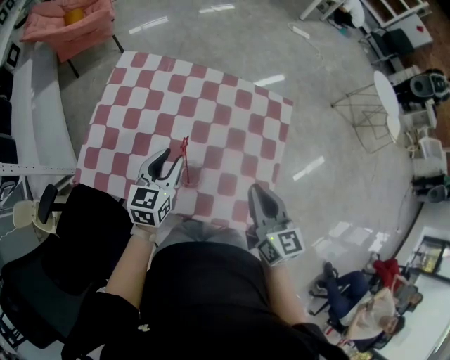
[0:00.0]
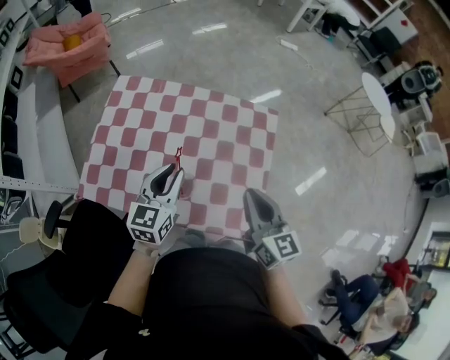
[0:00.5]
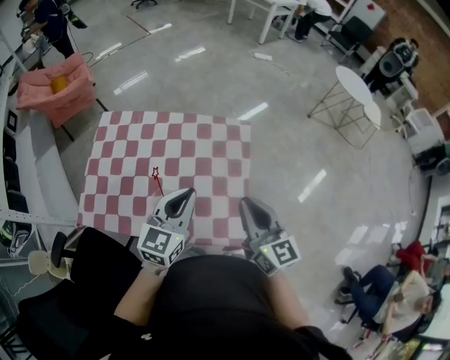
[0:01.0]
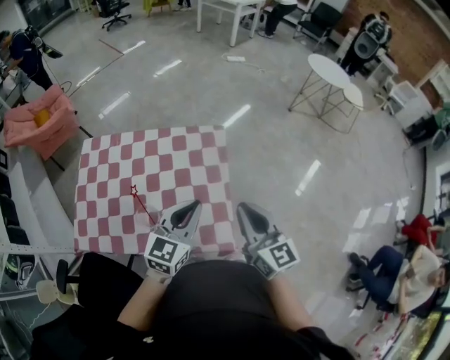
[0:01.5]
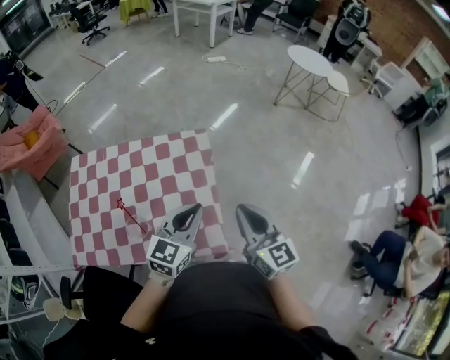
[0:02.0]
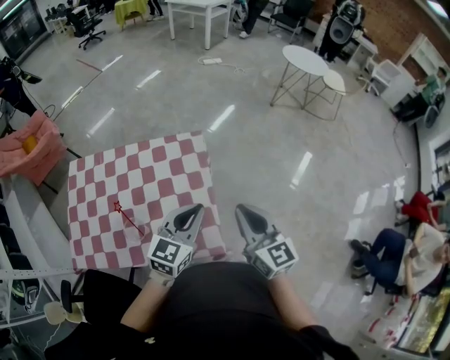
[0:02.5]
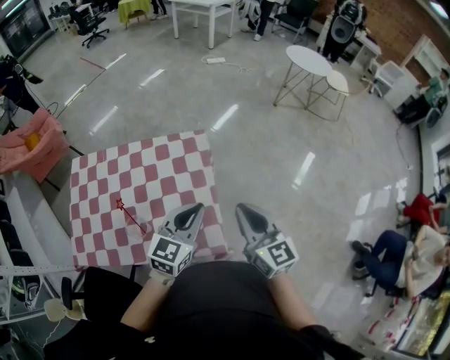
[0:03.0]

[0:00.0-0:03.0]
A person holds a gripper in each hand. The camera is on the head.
0.0 to 1.5 s: The right gripper moves to the right and upward, roughly 20 cm. The left gripper heads to the right and upward, covering some 30 cm, rotates about 30 degrees, and closes.
1.5 to 3.0 s: Both grippers travel together to the right, some 5 cm.

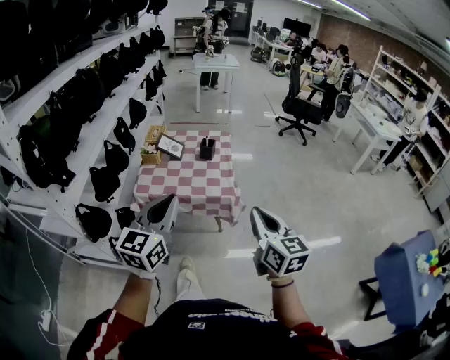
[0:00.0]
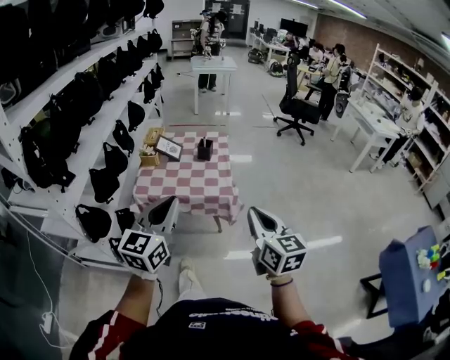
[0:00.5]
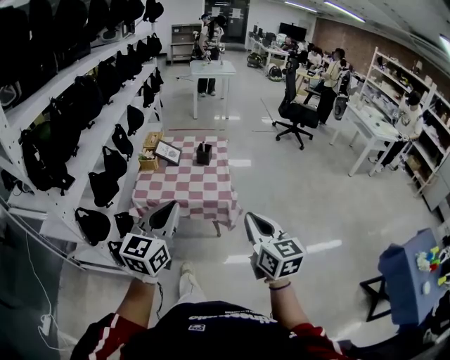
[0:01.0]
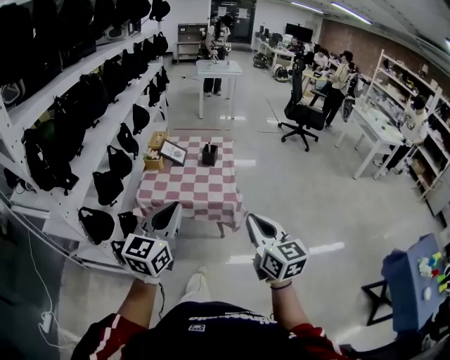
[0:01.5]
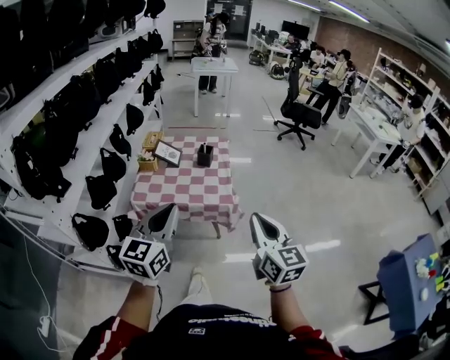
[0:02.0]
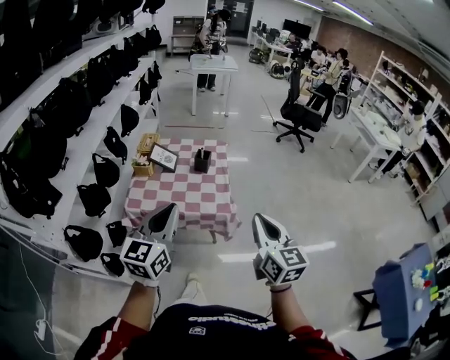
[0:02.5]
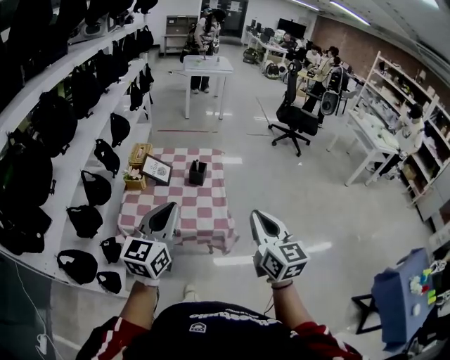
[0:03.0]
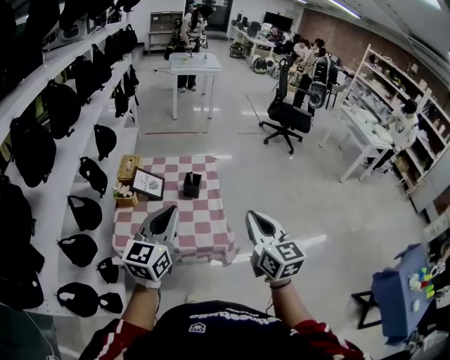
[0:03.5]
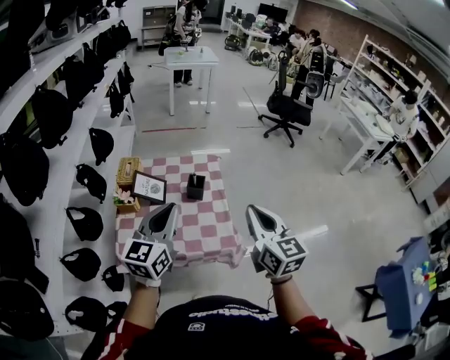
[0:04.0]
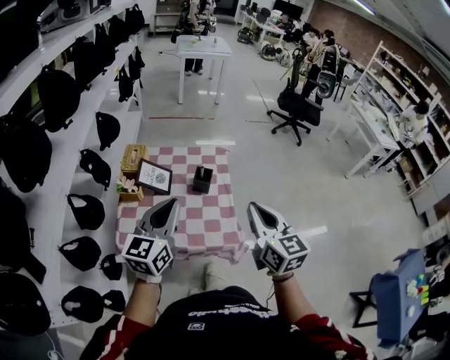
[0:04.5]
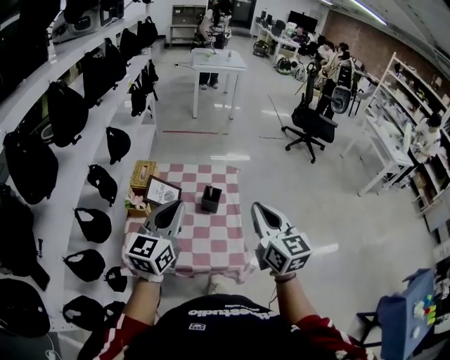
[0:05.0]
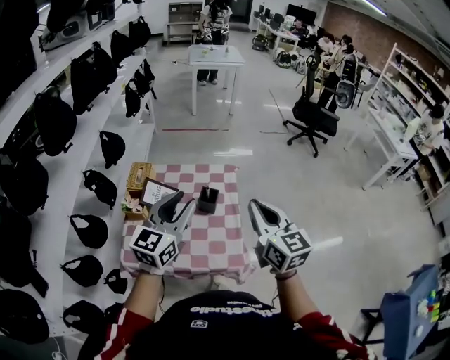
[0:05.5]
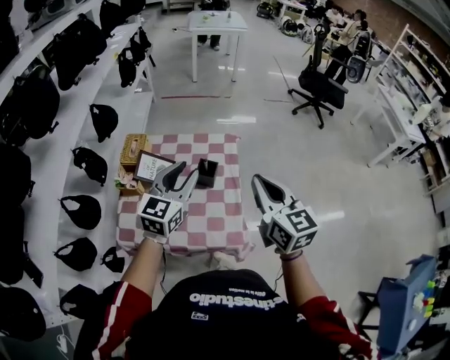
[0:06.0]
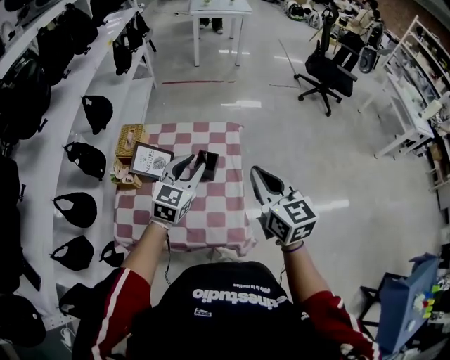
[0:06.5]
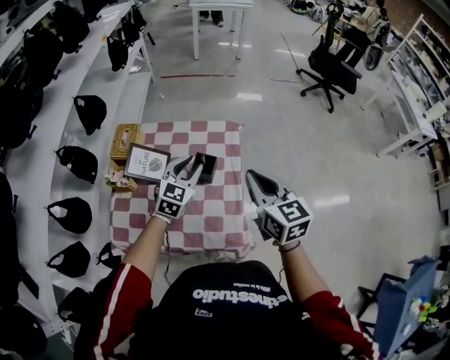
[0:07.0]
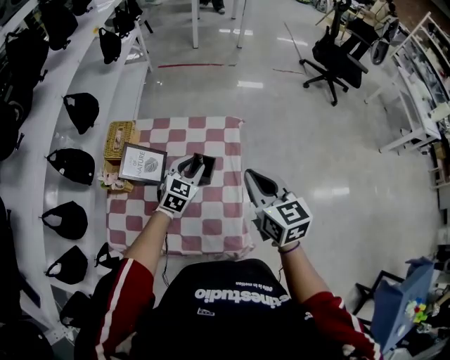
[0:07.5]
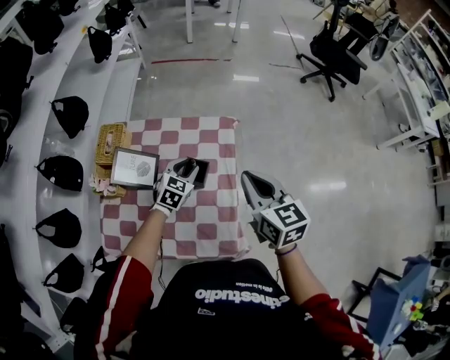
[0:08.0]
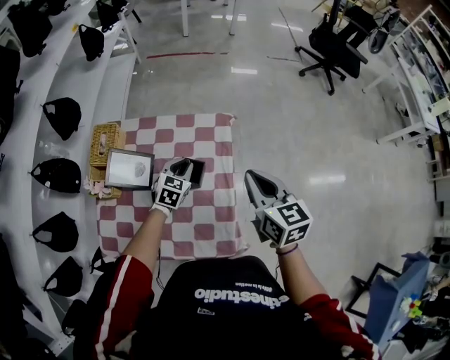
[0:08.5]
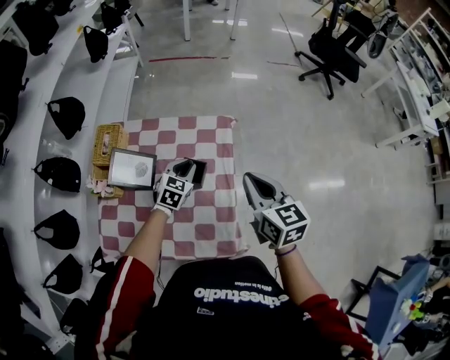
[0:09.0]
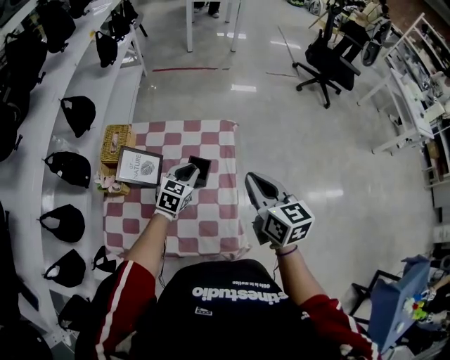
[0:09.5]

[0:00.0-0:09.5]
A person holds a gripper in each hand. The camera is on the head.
0.0 to 2.0 s: There are only small adjustments of the grippers.
2.0 to 4.0 s: The two grippers go about 30 cm forward.
4.0 to 5.5 s: Both grippers travel together forward, approximately 10 cm. The left gripper opens up.
5.5 to 7.5 s: The right gripper travels forward and downward by some 20 cm. Meanwhile the left gripper shifts approximately 35 cm downward and forward, and changes its angle by approximately 30 degrees.
7.5 to 9.5 s: The left gripper moves about 10 cm downward and comes back.

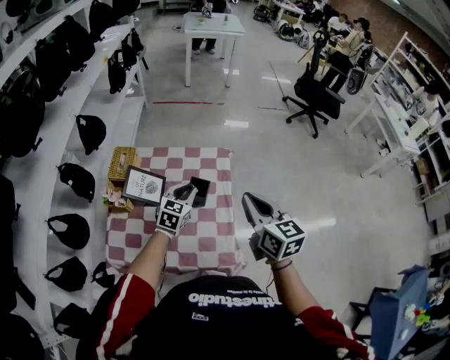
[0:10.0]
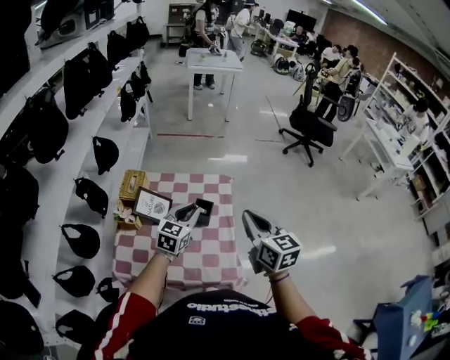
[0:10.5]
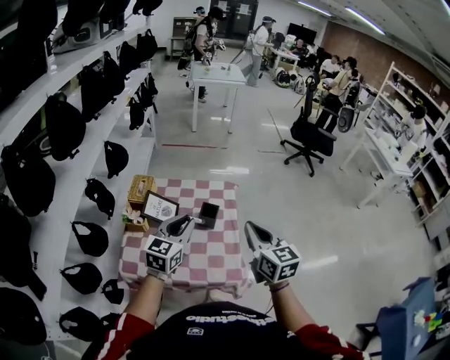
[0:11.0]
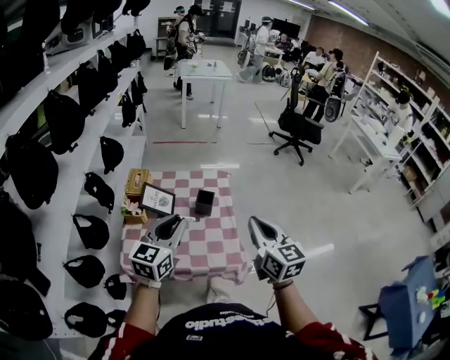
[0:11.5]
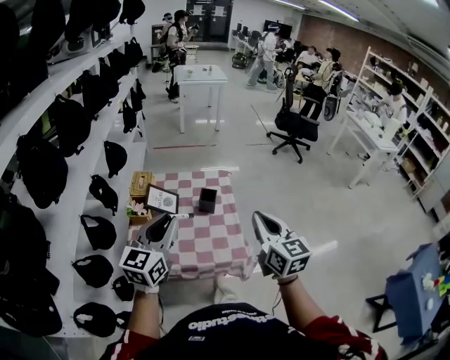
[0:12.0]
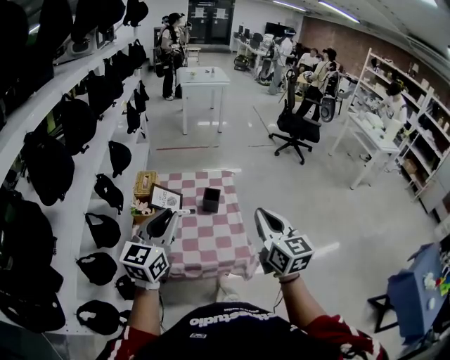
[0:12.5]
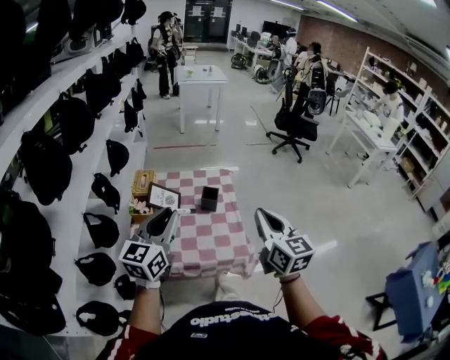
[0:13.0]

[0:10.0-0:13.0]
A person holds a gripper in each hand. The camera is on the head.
10.0 to 11.5 s: The left gripper moves backward and upward, about 30 cm, and turns by about 20 degrees. The right gripper goes about 15 cm backward.
11.5 to 13.0 s: The right gripper moves roughly 5 cm; the left gripper heads upward and to the left, covering about 5 cm.

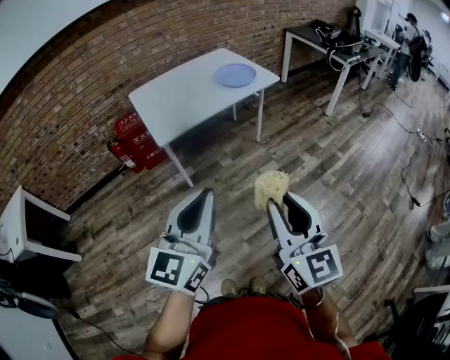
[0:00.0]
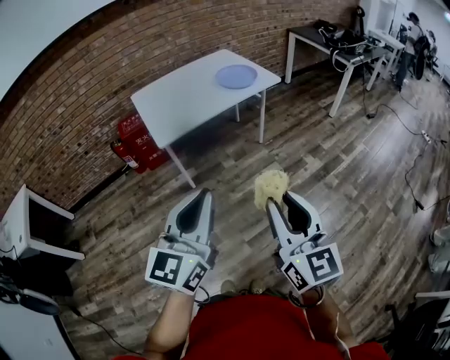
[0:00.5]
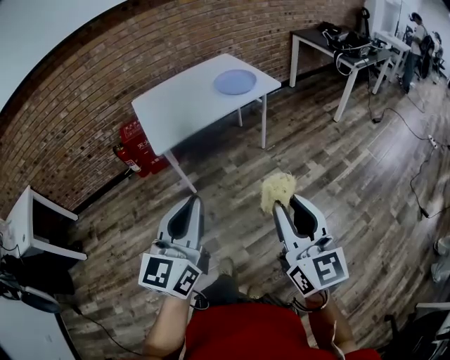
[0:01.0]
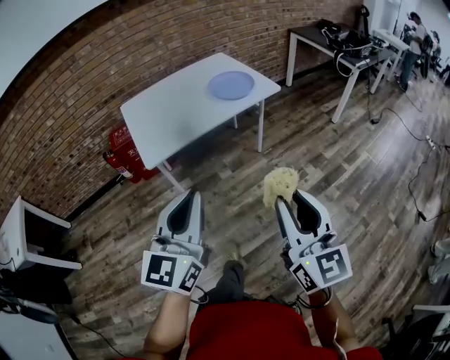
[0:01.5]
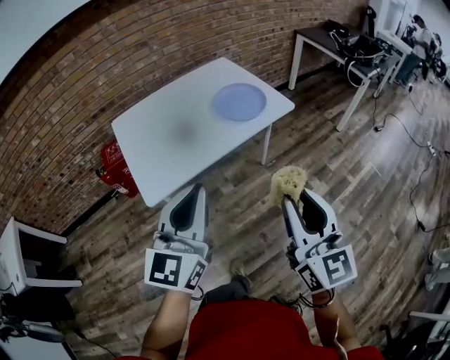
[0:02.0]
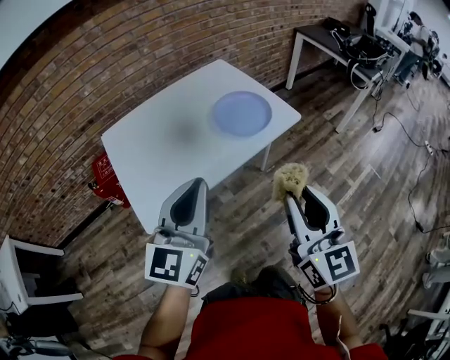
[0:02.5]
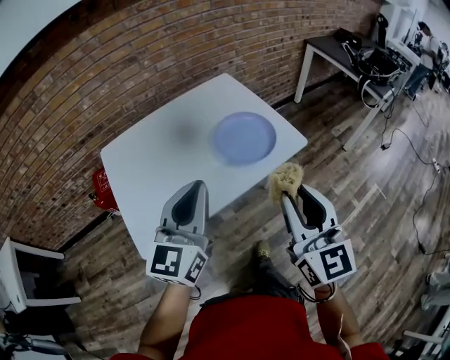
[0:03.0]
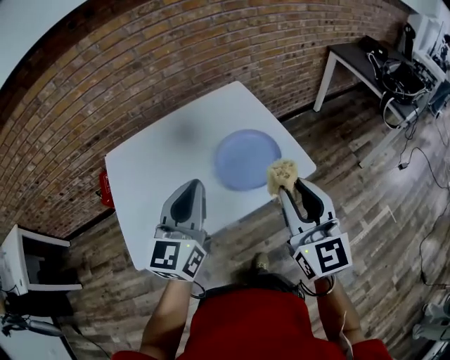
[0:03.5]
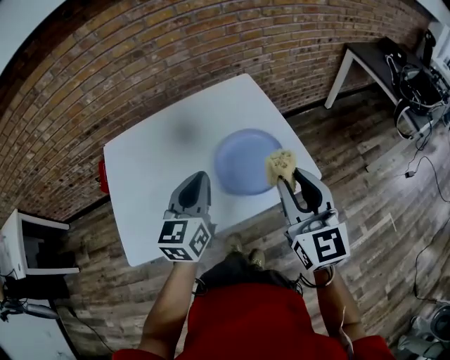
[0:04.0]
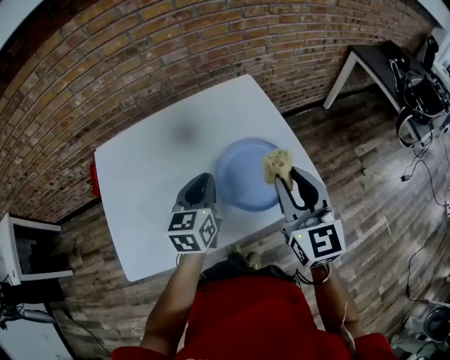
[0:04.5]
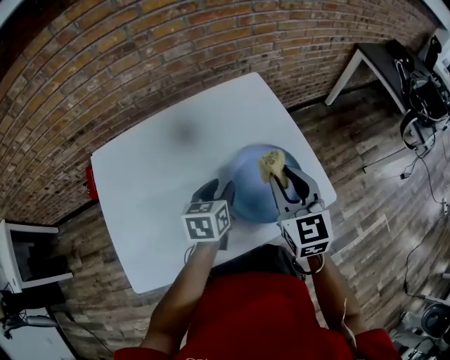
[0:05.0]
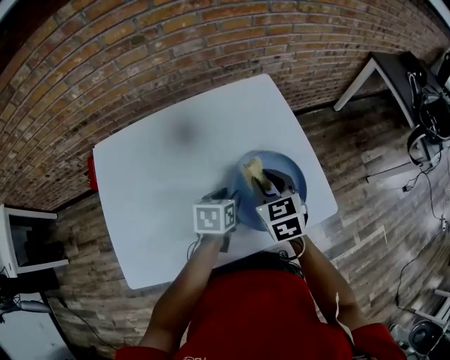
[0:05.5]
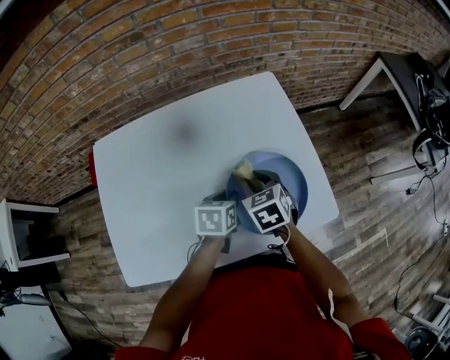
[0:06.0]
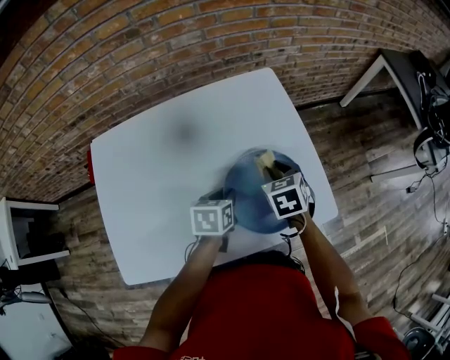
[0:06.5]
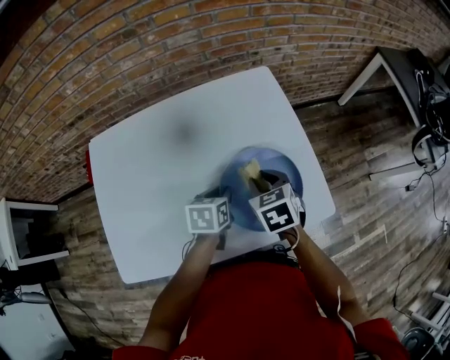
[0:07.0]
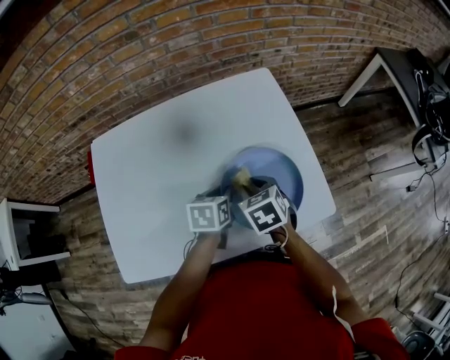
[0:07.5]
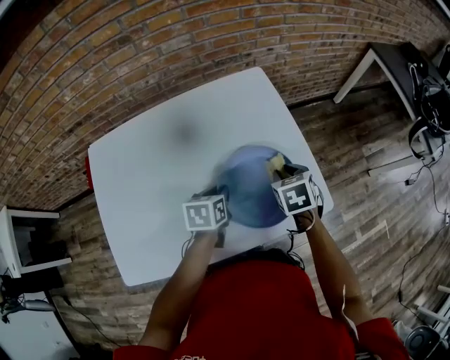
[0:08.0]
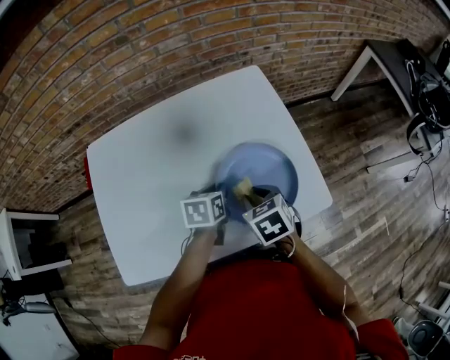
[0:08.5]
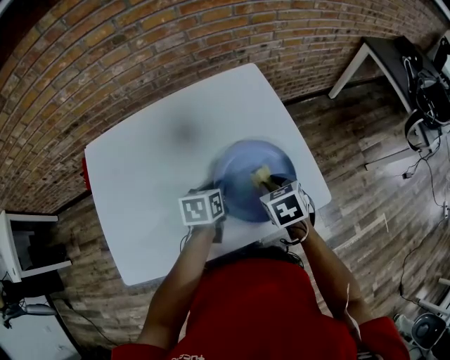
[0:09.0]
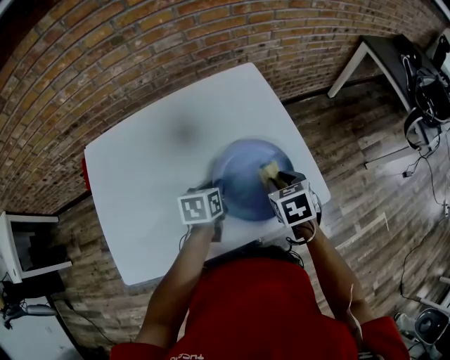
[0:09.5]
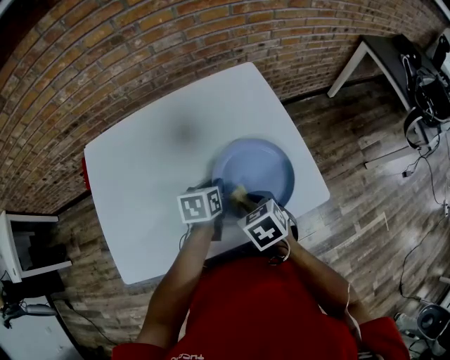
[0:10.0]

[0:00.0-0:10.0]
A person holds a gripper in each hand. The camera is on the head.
0.0 to 2.0 s: The two grippers go about 35 cm forward.
2.0 to 4.0 s: The two grippers travel together, forward, some 40 cm. The left gripper turns by approximately 20 degrees.
4.0 to 6.0 s: The right gripper shifts some 35 cm downward, forward and to the left, and angles its fingers downward, by approximately 50 degrees. The left gripper goes roughly 25 cm downward and forward, tilts its fingers about 40 degrees downward, and opens, then closes again.
6.0 to 8.0 s: The right gripper swings left and right, about 10 cm each way, with 2 reversals.
8.0 to 10.0 s: The right gripper moves backward and to the left, some 15 cm.

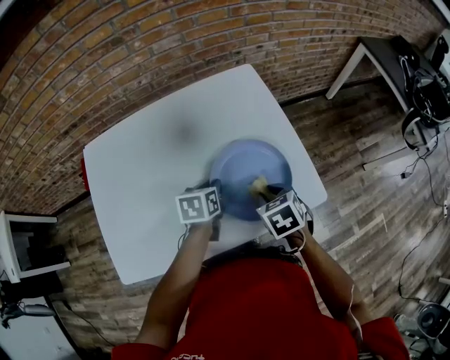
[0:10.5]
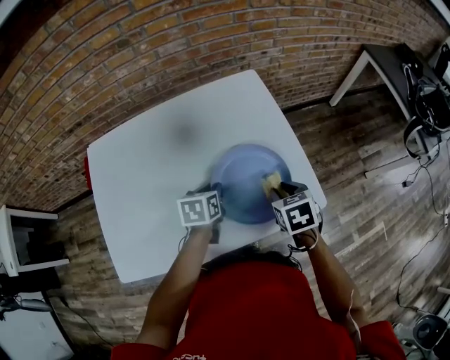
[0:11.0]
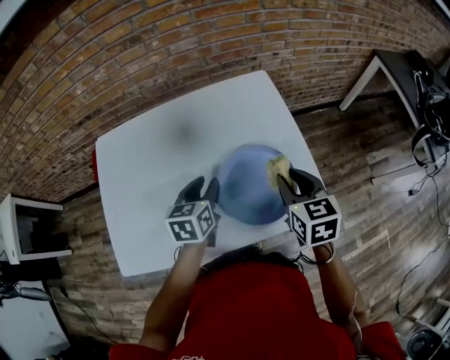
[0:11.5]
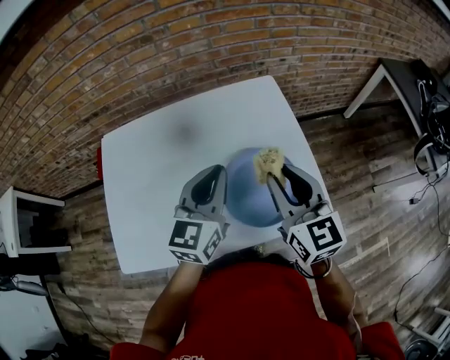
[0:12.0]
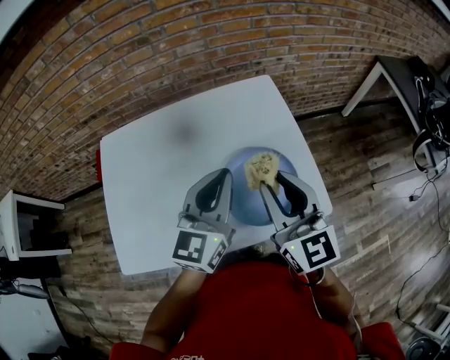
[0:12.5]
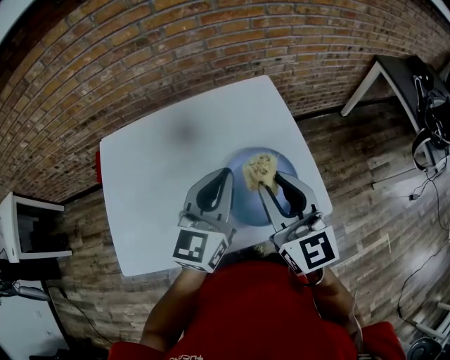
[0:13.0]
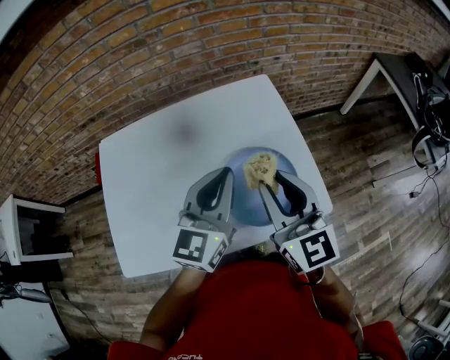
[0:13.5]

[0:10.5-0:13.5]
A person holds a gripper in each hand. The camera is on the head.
10.5 to 12.0 s: The grippers both shift upward by roughly 20 cm. The left gripper points its fingers roughly 40 degrees further upward, and opens, then closes once more. The right gripper points its fingers about 50 degrees further upward.
12.0 to 13.5 s: The grippers move only a little.
